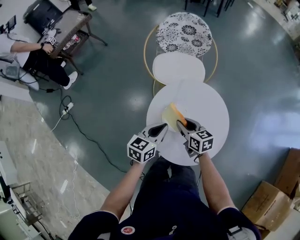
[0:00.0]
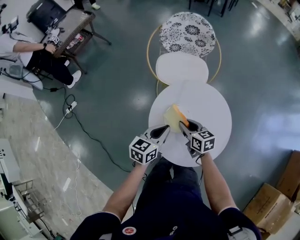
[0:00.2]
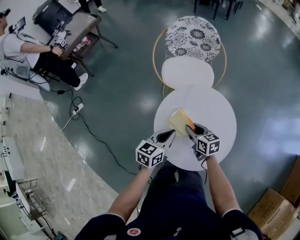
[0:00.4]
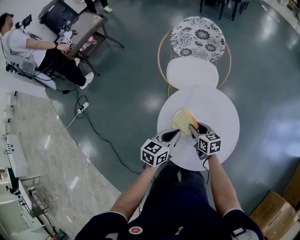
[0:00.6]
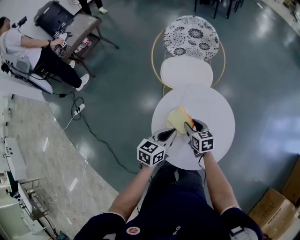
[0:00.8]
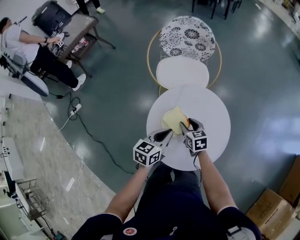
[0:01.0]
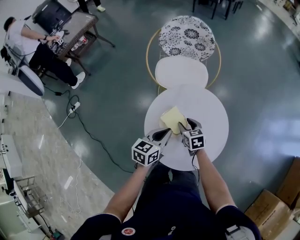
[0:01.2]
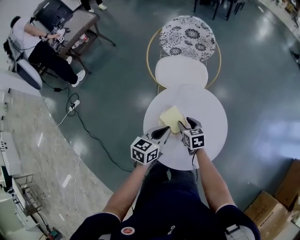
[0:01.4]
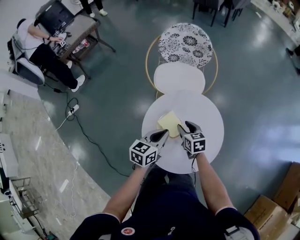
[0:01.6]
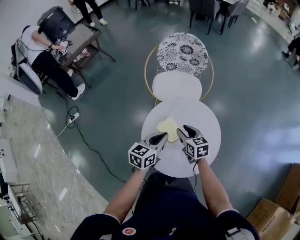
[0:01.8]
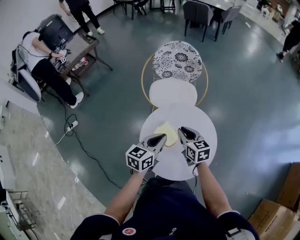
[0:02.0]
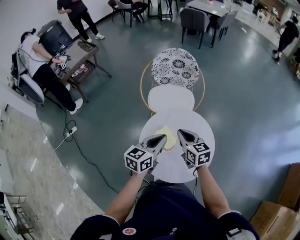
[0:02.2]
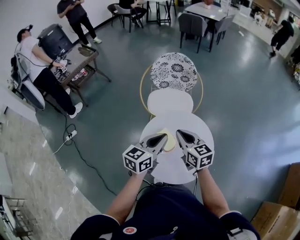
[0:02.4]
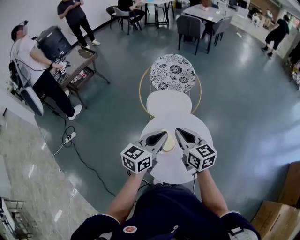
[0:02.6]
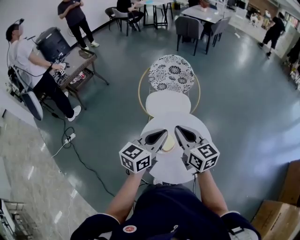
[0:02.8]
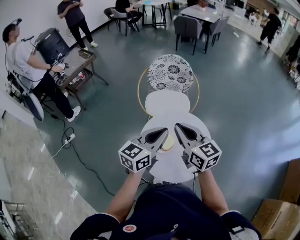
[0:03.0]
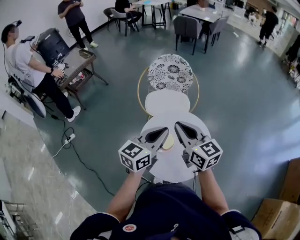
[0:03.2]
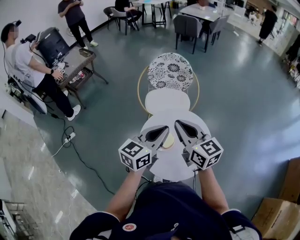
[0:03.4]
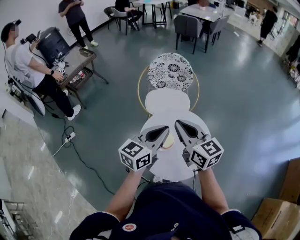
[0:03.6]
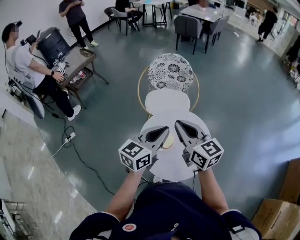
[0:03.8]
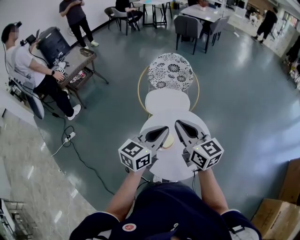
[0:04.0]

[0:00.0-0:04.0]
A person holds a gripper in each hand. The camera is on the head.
0.0 to 1.4 s: The right gripper shifts roughly 5 cm downward.
1.4 to 2.6 s: The left gripper shifts roughly 15 cm upward. The right gripper moves upward, roughly 25 cm, tips its fingers upward by roughly 30 degrees, and closes.
2.6 to 4.0 s: The right gripper is displaced upward by about 5 cm.

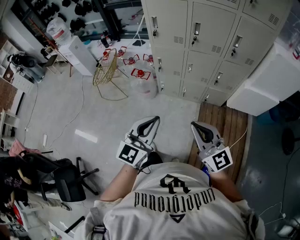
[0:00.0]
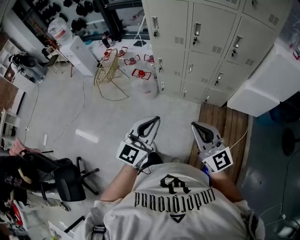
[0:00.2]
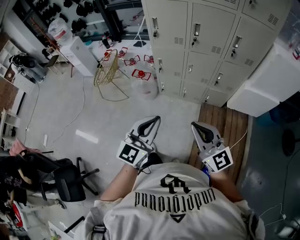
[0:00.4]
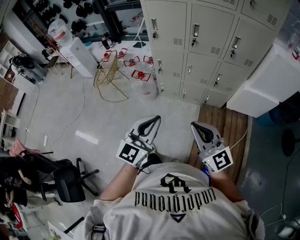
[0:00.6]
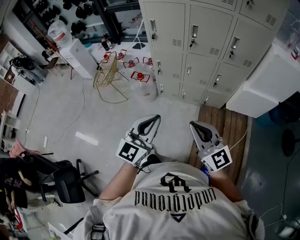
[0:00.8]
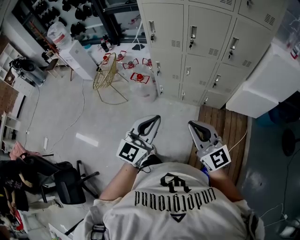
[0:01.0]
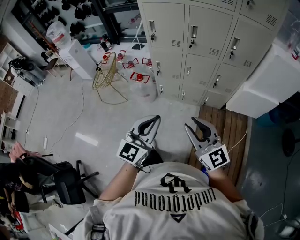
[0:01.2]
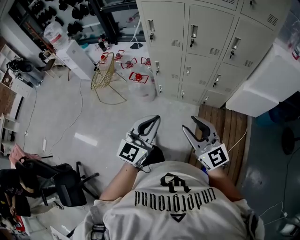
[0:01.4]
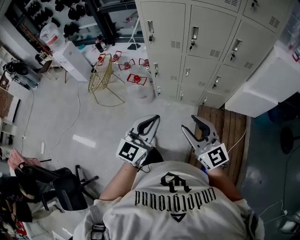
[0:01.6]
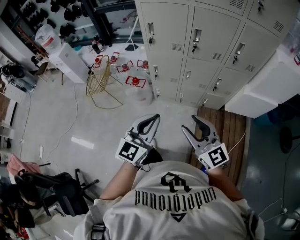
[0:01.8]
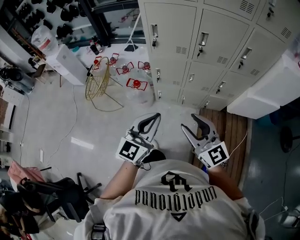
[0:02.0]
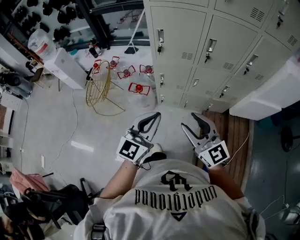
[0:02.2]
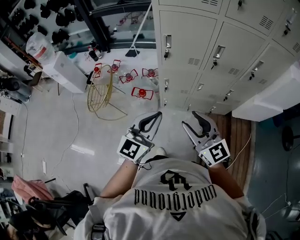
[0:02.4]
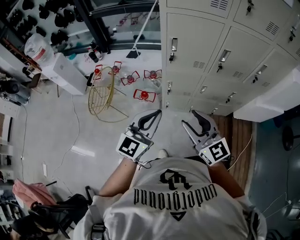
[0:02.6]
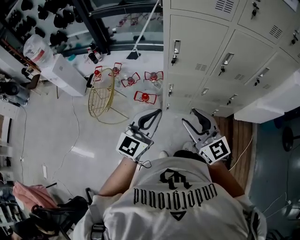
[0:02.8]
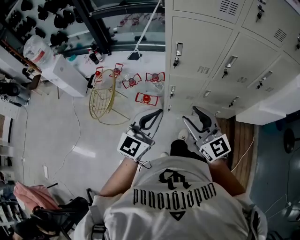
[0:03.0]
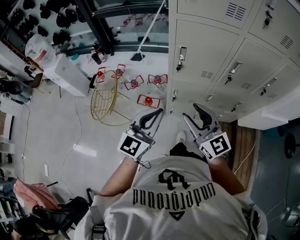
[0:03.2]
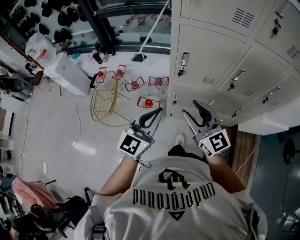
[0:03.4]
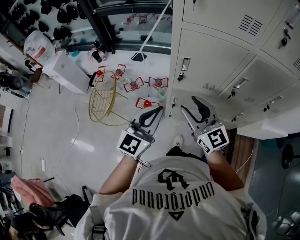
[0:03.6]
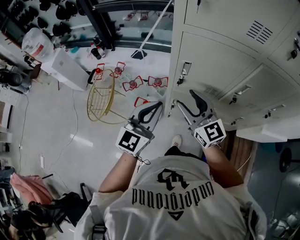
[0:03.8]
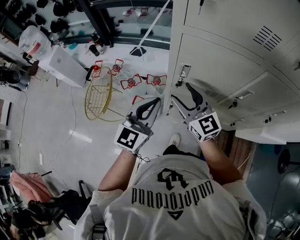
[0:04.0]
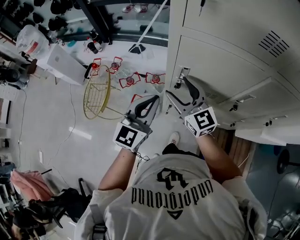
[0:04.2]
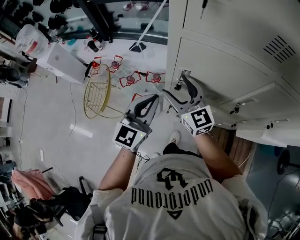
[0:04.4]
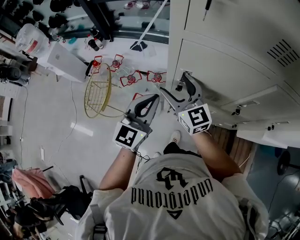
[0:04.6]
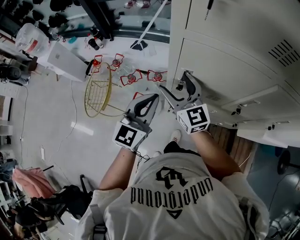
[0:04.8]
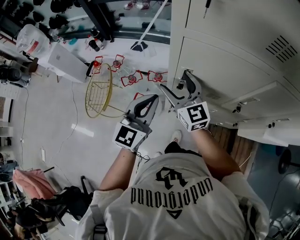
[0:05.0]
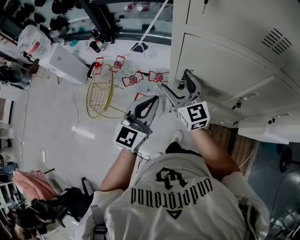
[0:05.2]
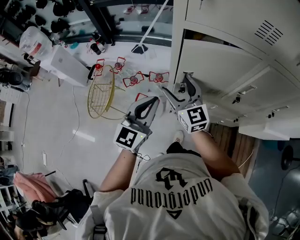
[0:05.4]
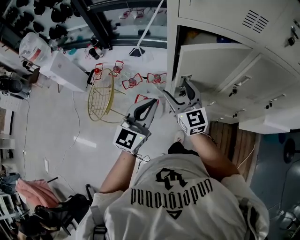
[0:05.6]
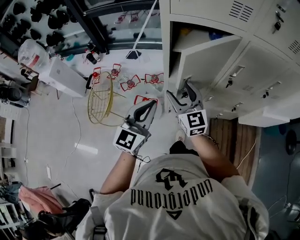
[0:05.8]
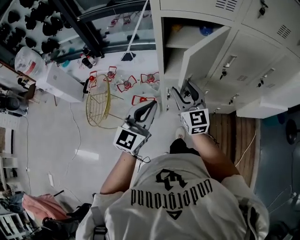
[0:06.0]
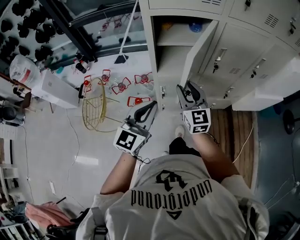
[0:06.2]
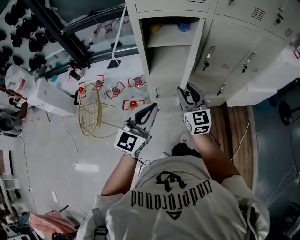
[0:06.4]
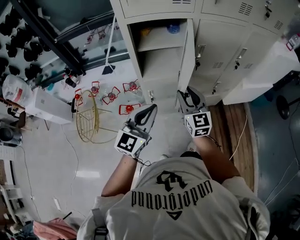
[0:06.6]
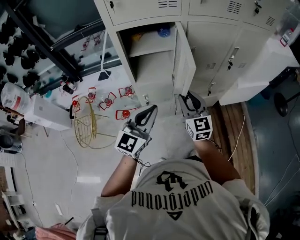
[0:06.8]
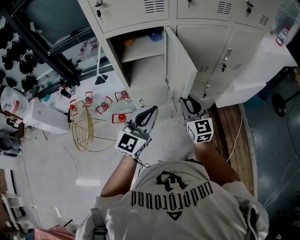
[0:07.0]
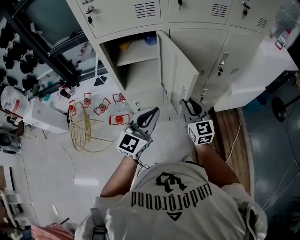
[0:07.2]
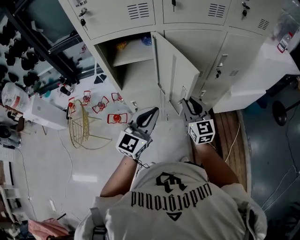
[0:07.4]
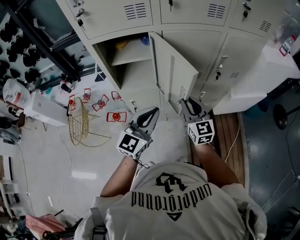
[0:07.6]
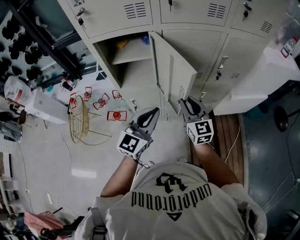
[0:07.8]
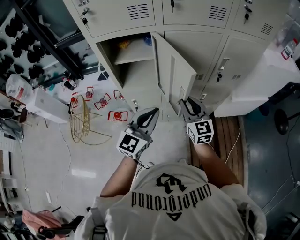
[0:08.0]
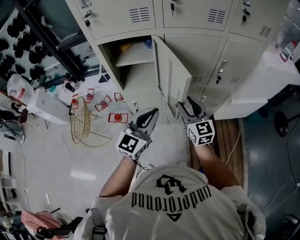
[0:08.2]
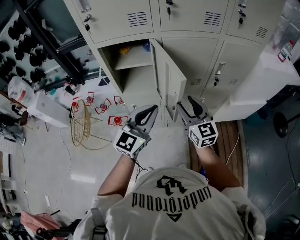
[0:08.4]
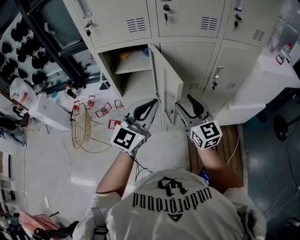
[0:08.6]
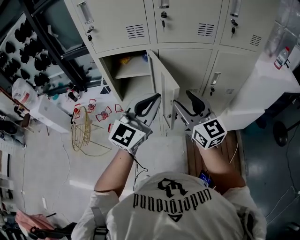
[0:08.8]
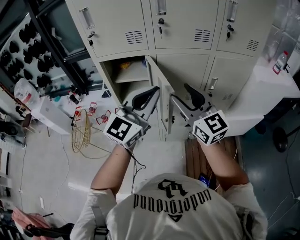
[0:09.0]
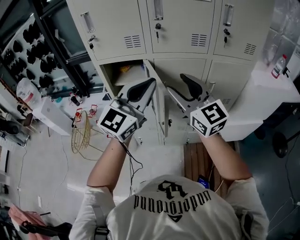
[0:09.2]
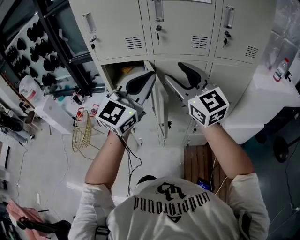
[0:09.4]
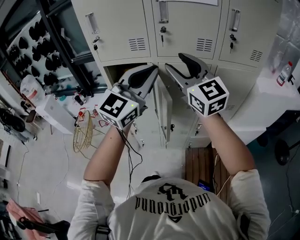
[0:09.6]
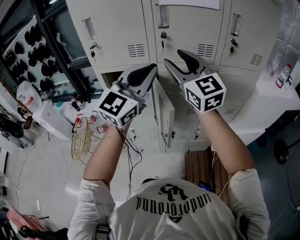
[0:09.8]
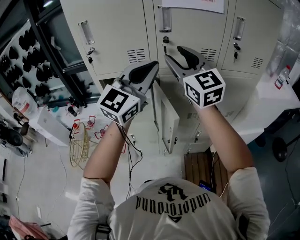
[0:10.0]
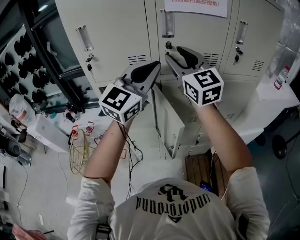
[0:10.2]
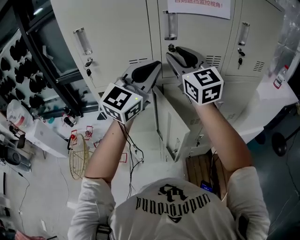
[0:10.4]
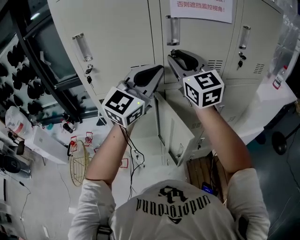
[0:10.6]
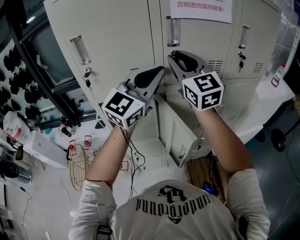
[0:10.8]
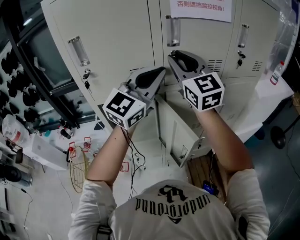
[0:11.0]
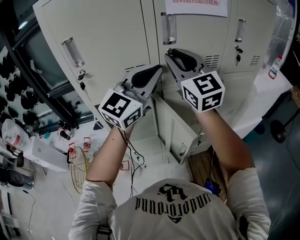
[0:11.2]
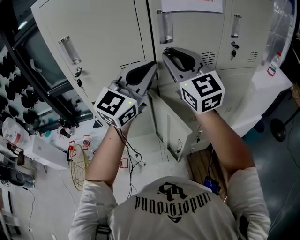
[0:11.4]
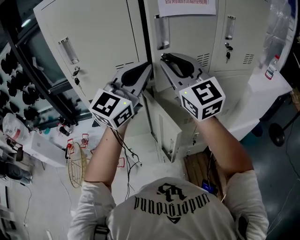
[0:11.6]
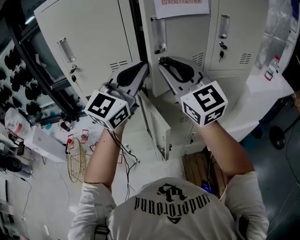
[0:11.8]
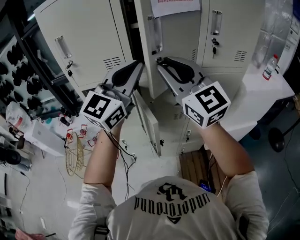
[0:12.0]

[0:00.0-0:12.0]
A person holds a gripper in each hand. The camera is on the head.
0.0 to 1.6 s: Both grippers travel together forward, about 5 cm. The right gripper opens up.
1.6 to 3.0 s: The grippers both shift forward and to the left by roughly 35 cm.
3.0 to 4.4 s: The two grippers go some 30 cm forward. The right gripper opens.
4.4 to 6.0 s: The grippers both shift backward by about 15 cm. The right gripper turns by roughly 20 degrees.
6.0 to 7.6 s: The grippers both shift to the right by about 25 cm. The right gripper closes up.
7.6 to 9.0 s: Both grippers travel together upward, approximately 20 cm. The right gripper swivels about 20 degrees, and opens.
9.0 to 10.4 s: Both grippers travel together forward and upward, approximately 25 cm.
10.4 to 12.0 s: The right gripper moves backward and to the right, about 15 cm. The left gripper travels to the right by approximately 5 cm.

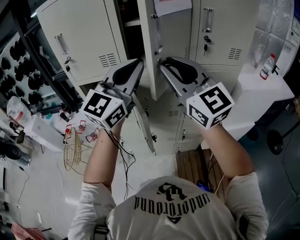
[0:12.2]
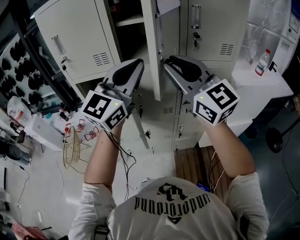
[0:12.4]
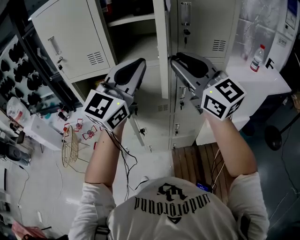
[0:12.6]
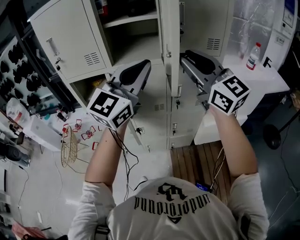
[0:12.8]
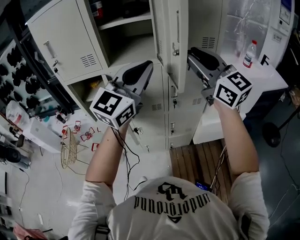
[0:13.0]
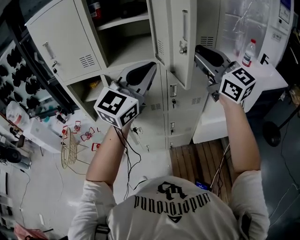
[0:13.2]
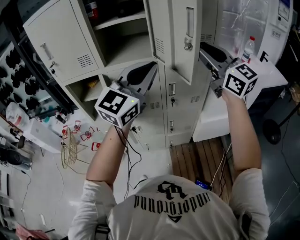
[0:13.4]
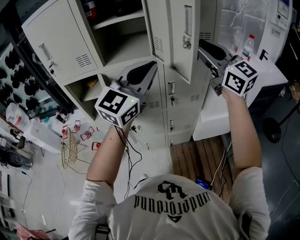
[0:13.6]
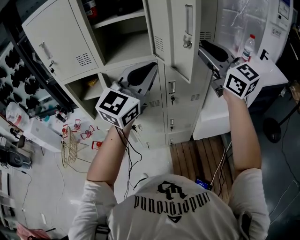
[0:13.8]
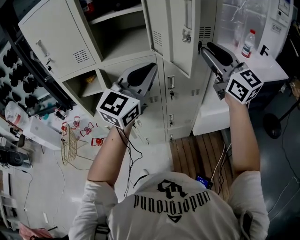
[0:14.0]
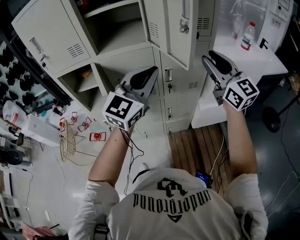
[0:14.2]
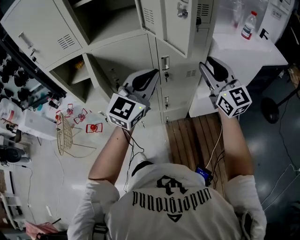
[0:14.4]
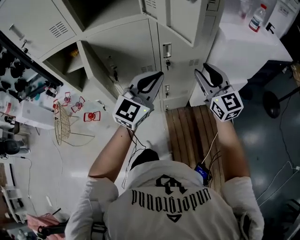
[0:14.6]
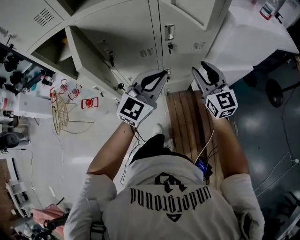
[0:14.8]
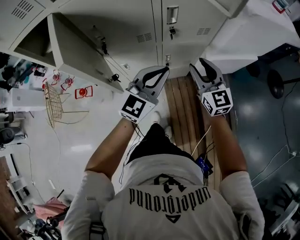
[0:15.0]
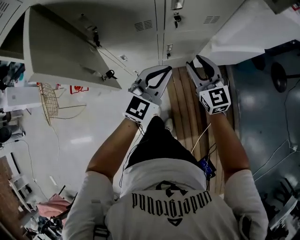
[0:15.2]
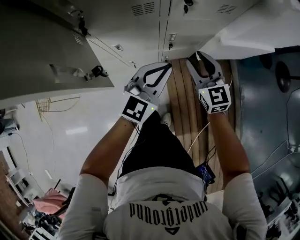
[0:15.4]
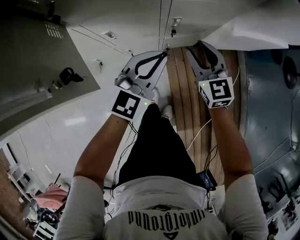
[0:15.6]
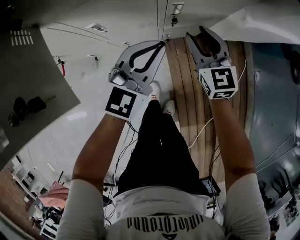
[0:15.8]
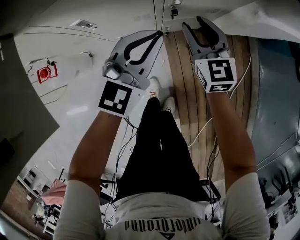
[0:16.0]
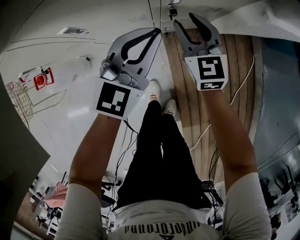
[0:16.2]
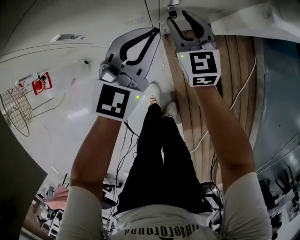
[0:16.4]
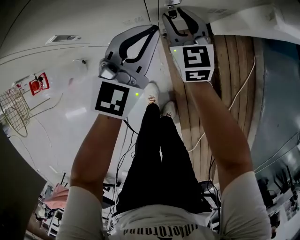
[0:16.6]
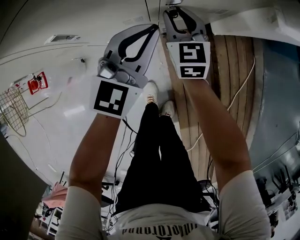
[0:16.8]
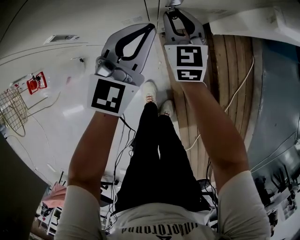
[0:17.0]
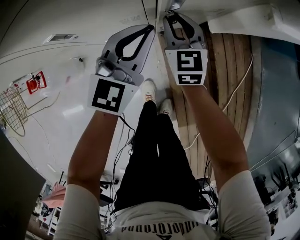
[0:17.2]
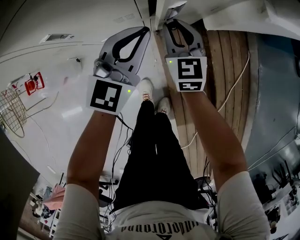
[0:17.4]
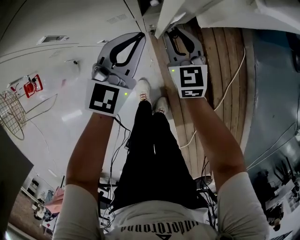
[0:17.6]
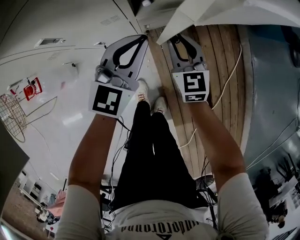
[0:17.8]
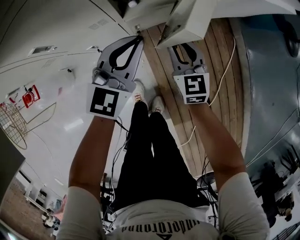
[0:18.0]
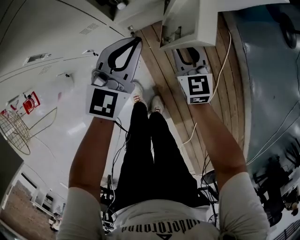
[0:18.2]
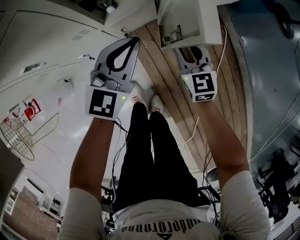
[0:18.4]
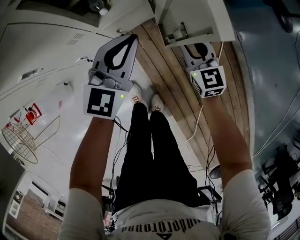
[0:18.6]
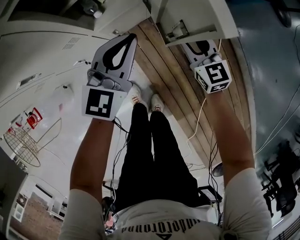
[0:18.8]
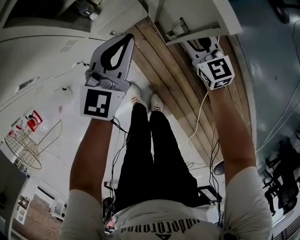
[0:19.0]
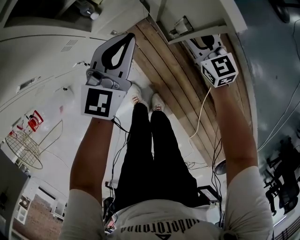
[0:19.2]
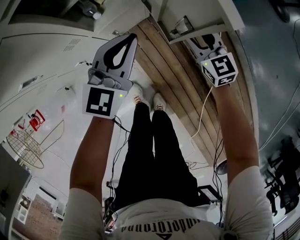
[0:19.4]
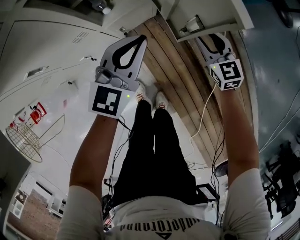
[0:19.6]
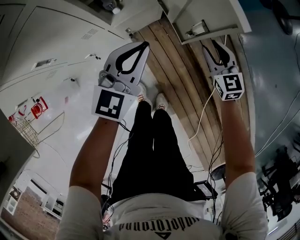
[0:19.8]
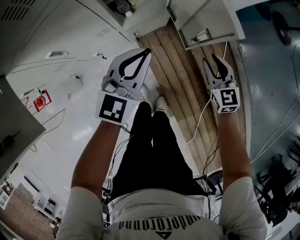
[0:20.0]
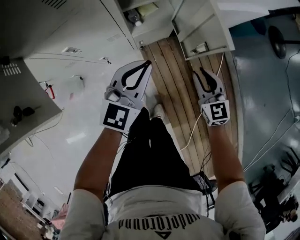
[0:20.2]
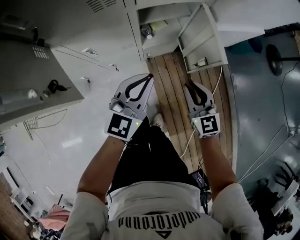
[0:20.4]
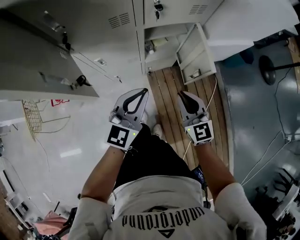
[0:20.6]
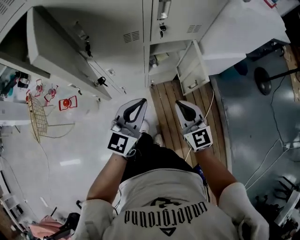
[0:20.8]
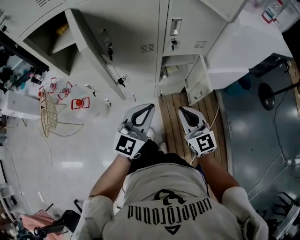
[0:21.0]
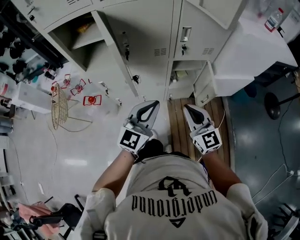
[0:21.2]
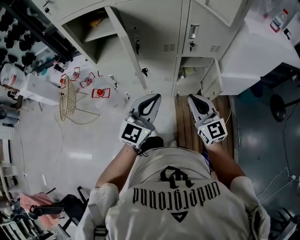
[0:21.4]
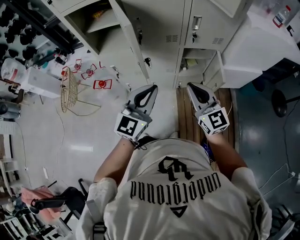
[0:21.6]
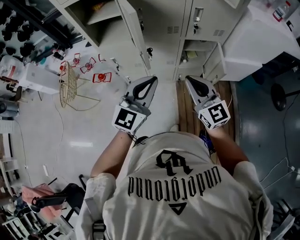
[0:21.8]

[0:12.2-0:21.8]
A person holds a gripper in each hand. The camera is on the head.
12.2 to 13.8 s: The grippers both shift to the right by approximately 20 cm.
13.8 to 15.4 s: The grippers both shift downward by approximately 50 cm. The left gripper turns by some 20 degrees. The right gripper angles its fingers downward, by about 30 degrees.
15.4 to 17.0 s: Both grippers travel together downward and forward, some 30 cm.
17.0 to 18.6 s: The right gripper shifts some 30 cm to the right, while the left gripper moves to the right, roughly 15 cm.
18.6 to 20.2 s: The left gripper goes some 15 cm upward, backward and to the left. Meanwhile the right gripper goes roughly 15 cm upward and backward.
20.2 to 21.8 s: The left gripper moves upward, backward and to the left, about 40 cm, and swivels about 20 degrees, while the right gripper shifts roughly 50 cm upward and to the left, and swivels approximately 40 degrees.
